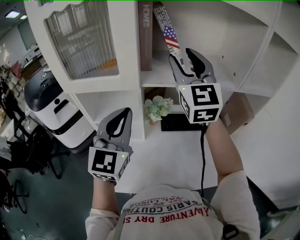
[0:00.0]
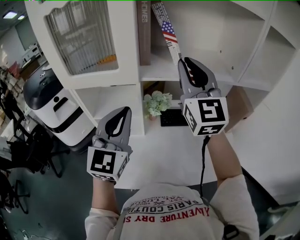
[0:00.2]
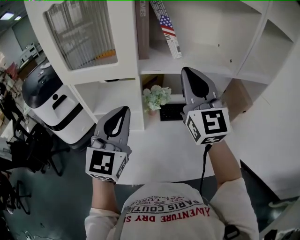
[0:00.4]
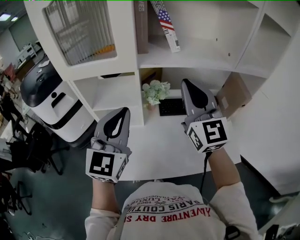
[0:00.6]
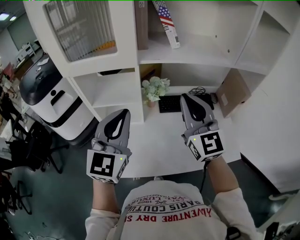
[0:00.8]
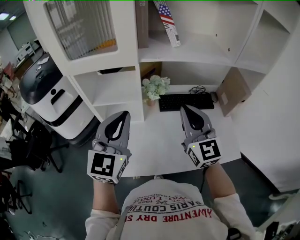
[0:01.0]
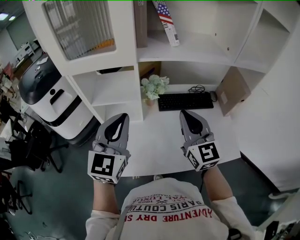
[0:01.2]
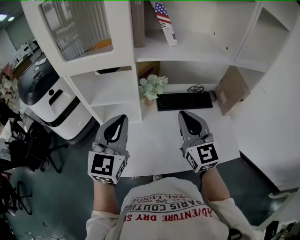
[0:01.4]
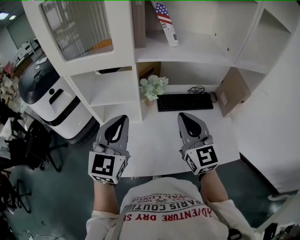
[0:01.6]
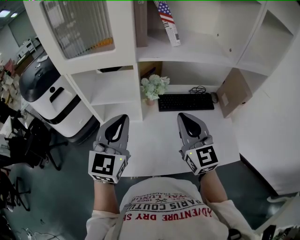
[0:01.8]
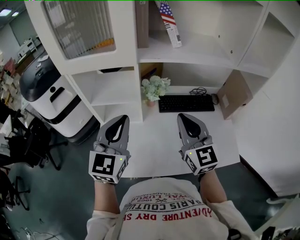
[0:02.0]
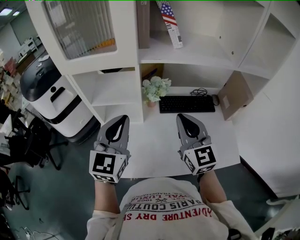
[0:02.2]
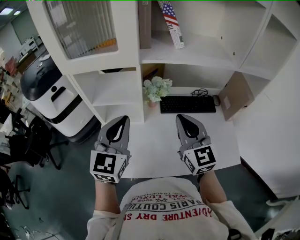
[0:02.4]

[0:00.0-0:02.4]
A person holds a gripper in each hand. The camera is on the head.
0:00.0 to 0:01.2: The right gripper shifts about 25 cm downward and backward, and closes up, while the left gripper travels backward and downward by some 10 cm.
0:01.2 to 0:02.4: The grippers stay close to where they were, moving slightly.

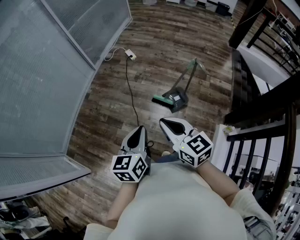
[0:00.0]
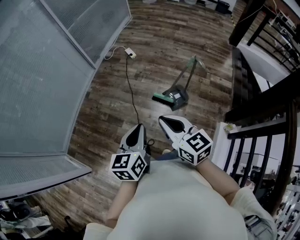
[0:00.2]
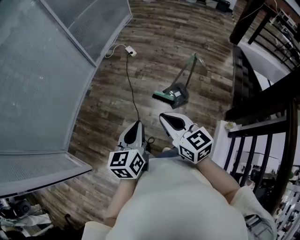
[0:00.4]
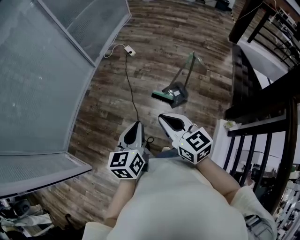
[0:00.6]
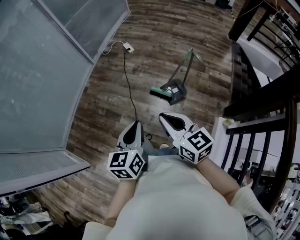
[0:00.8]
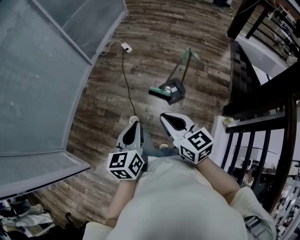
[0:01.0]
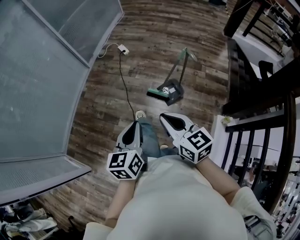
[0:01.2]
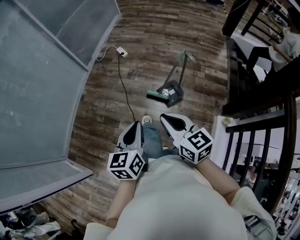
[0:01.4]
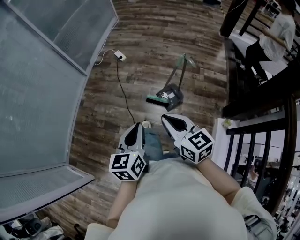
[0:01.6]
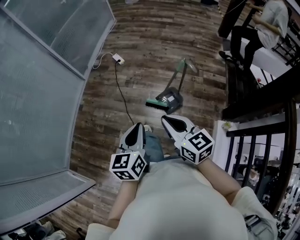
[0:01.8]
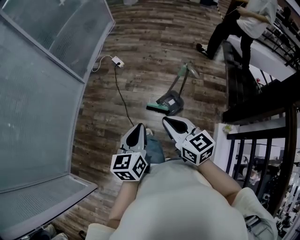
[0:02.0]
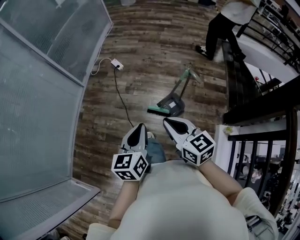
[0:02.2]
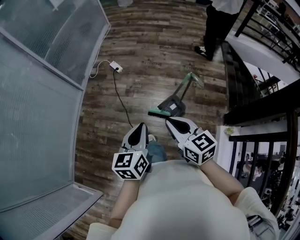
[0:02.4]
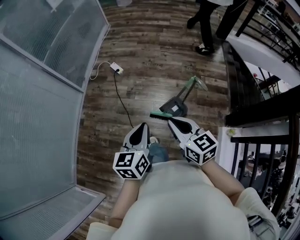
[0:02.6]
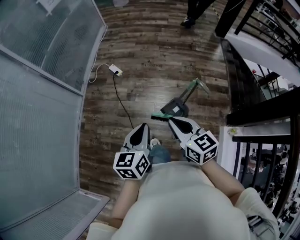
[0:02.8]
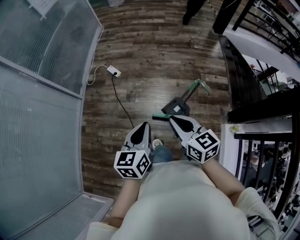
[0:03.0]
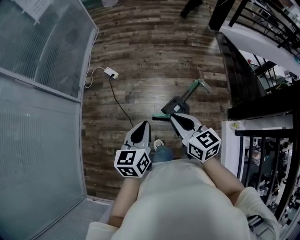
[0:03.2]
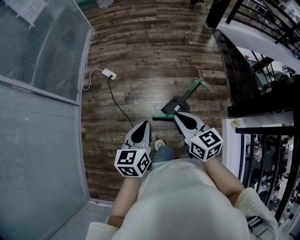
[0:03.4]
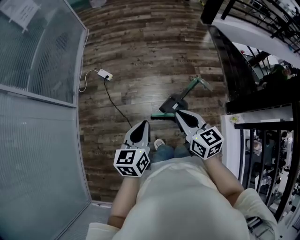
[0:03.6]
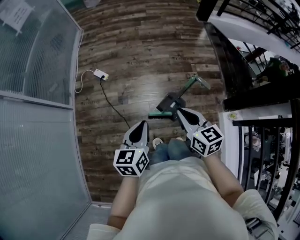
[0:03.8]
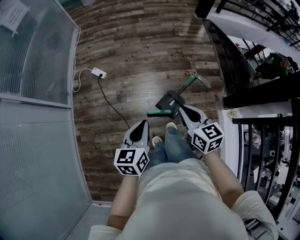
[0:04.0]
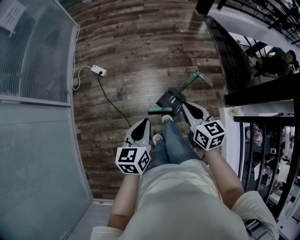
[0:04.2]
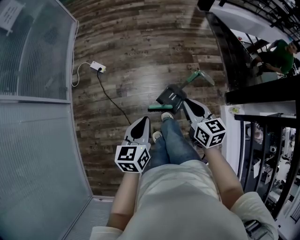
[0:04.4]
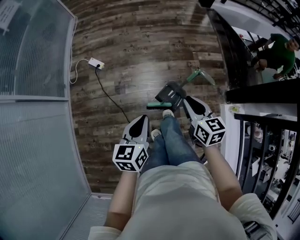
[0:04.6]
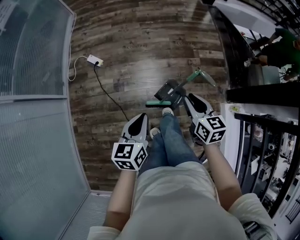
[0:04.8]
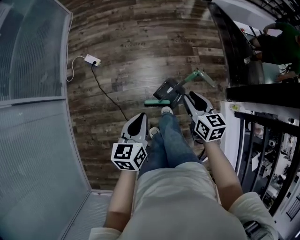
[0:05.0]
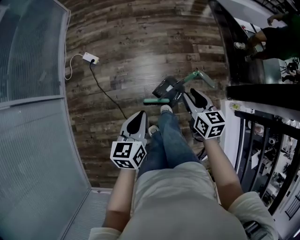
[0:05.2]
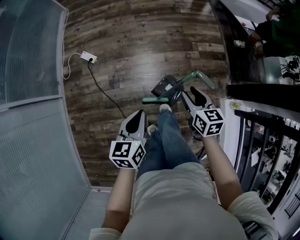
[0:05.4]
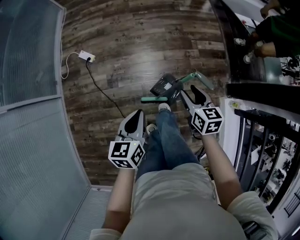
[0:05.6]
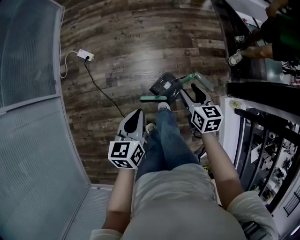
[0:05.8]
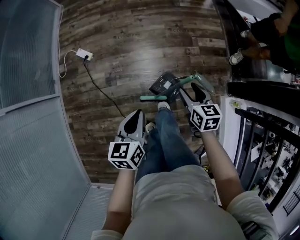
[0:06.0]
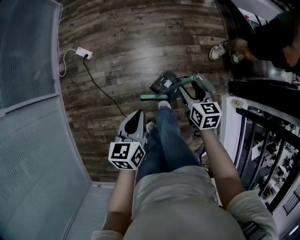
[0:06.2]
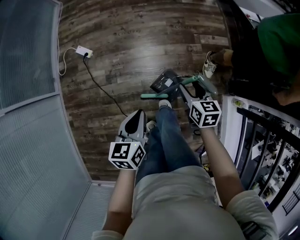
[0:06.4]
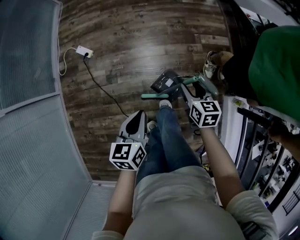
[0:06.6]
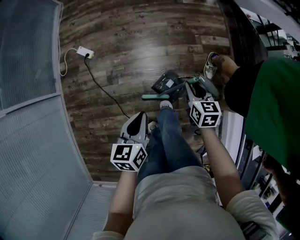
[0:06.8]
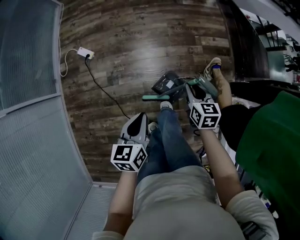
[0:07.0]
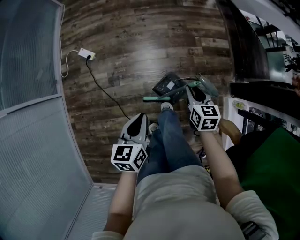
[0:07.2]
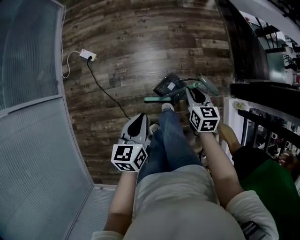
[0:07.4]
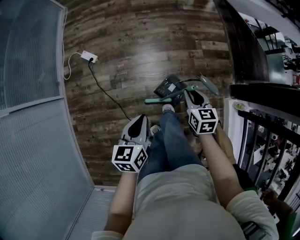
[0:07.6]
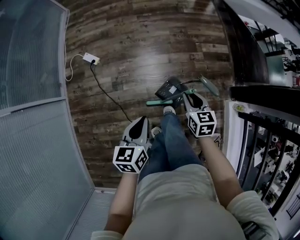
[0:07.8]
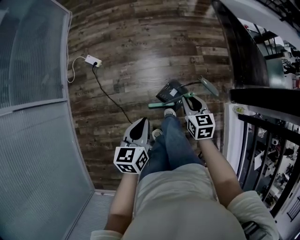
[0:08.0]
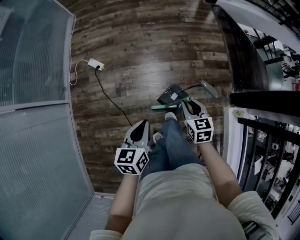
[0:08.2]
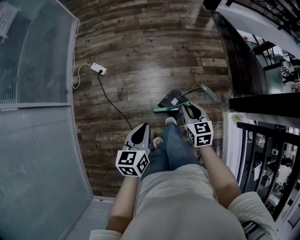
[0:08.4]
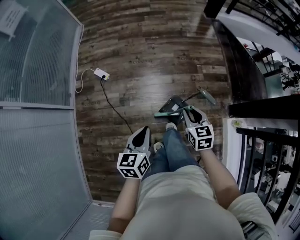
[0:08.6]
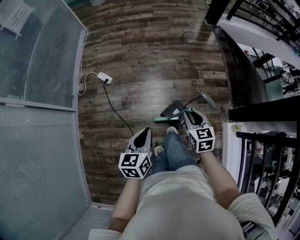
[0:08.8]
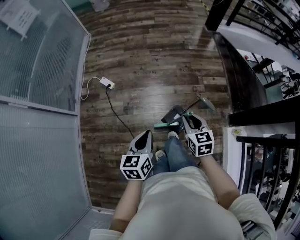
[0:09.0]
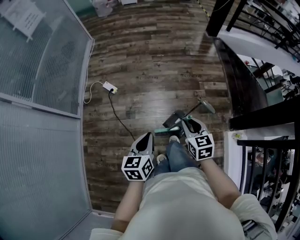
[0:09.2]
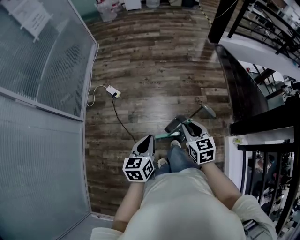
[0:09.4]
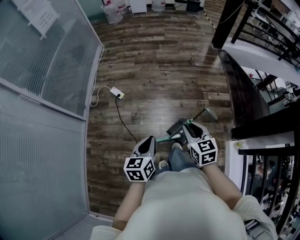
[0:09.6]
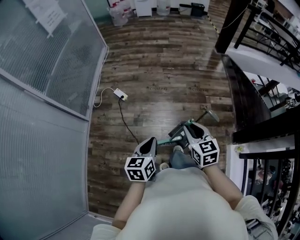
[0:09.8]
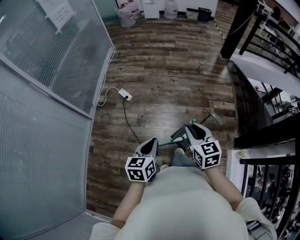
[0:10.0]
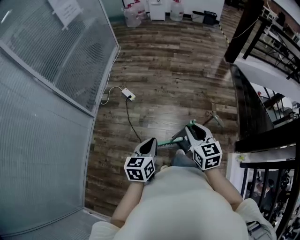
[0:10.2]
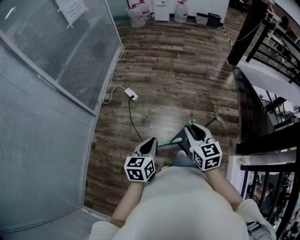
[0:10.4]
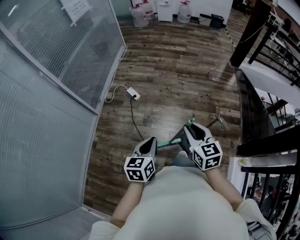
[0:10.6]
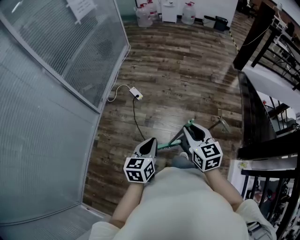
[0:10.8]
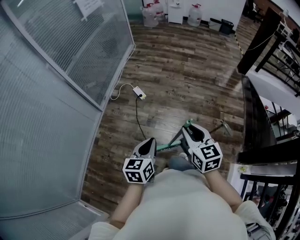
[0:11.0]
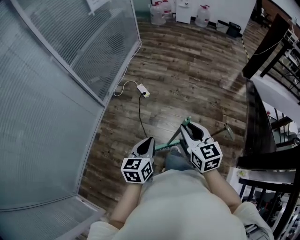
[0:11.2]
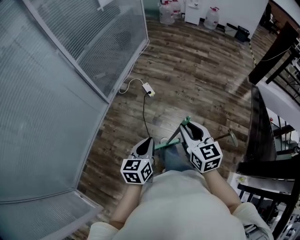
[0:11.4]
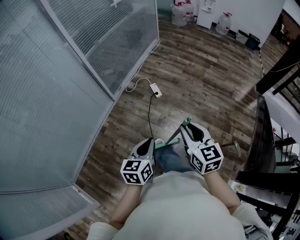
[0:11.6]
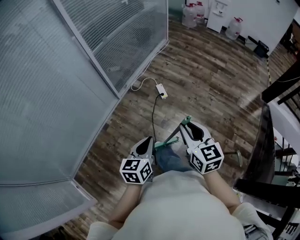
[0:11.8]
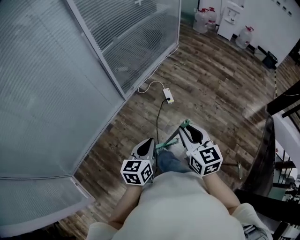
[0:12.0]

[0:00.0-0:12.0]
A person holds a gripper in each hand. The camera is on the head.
0:00.0 to 0:01.6: The right gripper moves to the right, roughly 5 cm. The left gripper heads to the right and forward, covering some 10 cm.
0:01.6 to 0:03.0: The two grippers go about 25 cm forward.
0:03.0 to 0:04.4: The right gripper shifts approximately 15 cm forward, downward and to the right, and swivels about 20 degrees; the left gripper travels forward and downward by about 10 cm.
0:04.4 to 0:06.0: The left gripper shifts some 15 cm forward, downward and to the right. Meanwhile the right gripper heads downward, forward and to the right, covering some 20 cm, and opens.
0:06.0 to 0:07.6: The right gripper closes.
0:07.6 to 0:09.0: The left gripper is displaced upward and backward by about 10 cm; the right gripper travels upward, backward and to the left by approximately 15 cm.
0:09.0 to 0:10.4: The left gripper heads to the left and backward, covering some 10 cm. Meanwhile the right gripper heads upward and to the left, covering approximately 15 cm.
0:10.4 to 0:12.0: The right gripper changes place by some 25 cm, and turns by roughly 30 degrees. The left gripper shifts by roughly 20 cm, and rotates approximately 30 degrees.

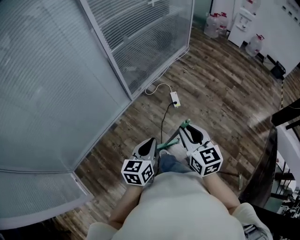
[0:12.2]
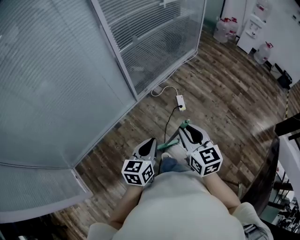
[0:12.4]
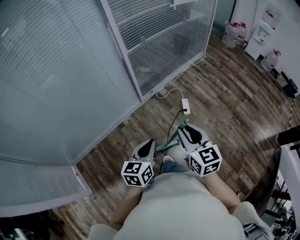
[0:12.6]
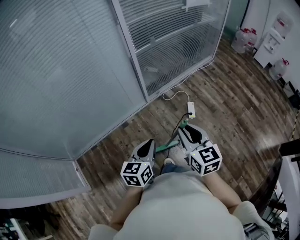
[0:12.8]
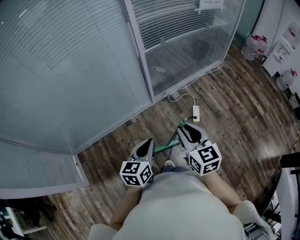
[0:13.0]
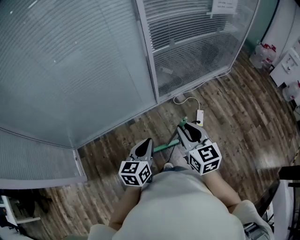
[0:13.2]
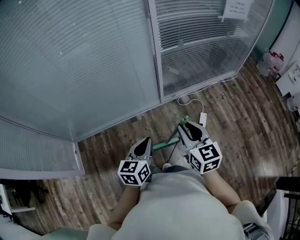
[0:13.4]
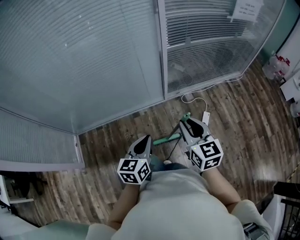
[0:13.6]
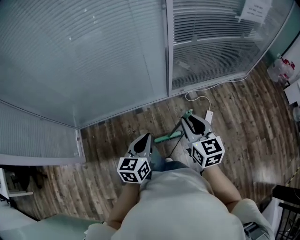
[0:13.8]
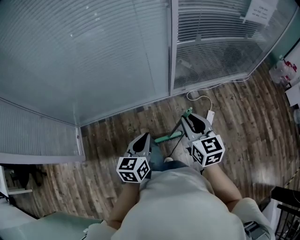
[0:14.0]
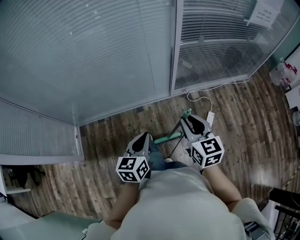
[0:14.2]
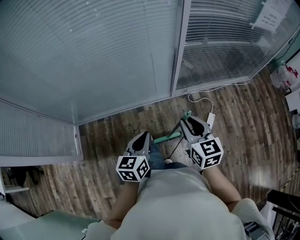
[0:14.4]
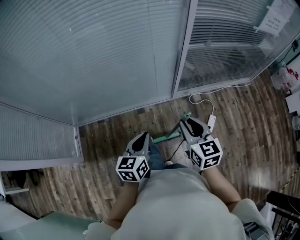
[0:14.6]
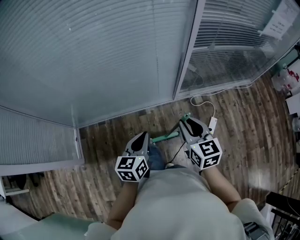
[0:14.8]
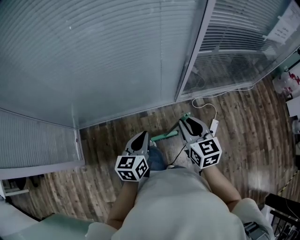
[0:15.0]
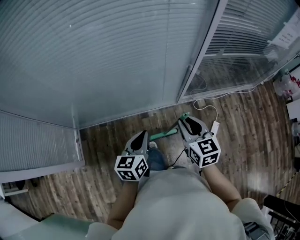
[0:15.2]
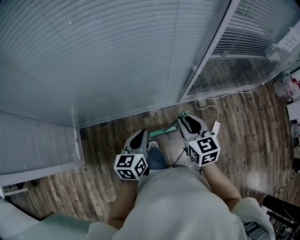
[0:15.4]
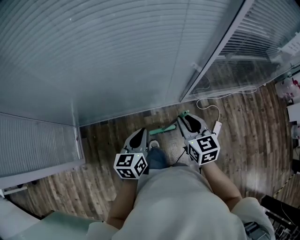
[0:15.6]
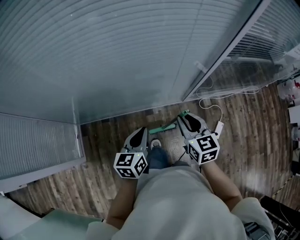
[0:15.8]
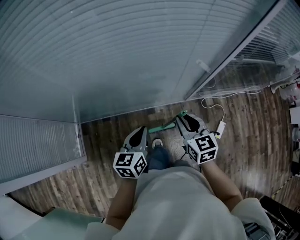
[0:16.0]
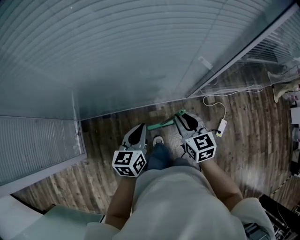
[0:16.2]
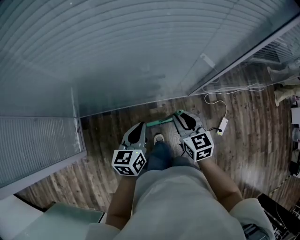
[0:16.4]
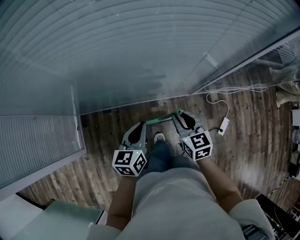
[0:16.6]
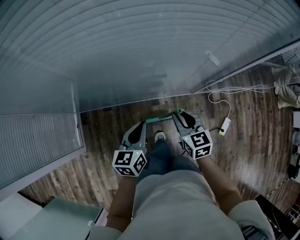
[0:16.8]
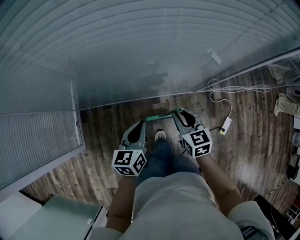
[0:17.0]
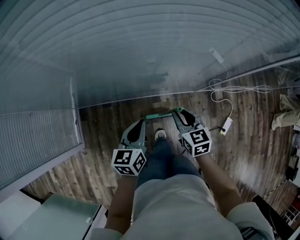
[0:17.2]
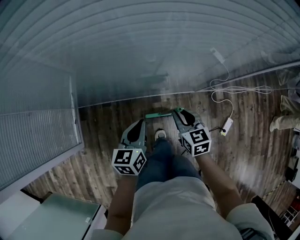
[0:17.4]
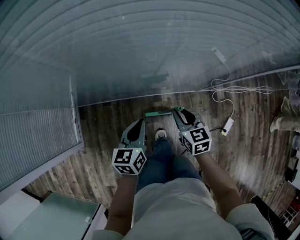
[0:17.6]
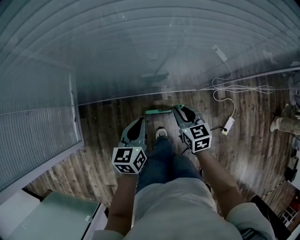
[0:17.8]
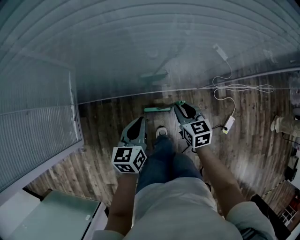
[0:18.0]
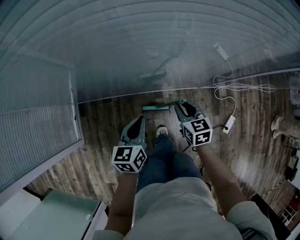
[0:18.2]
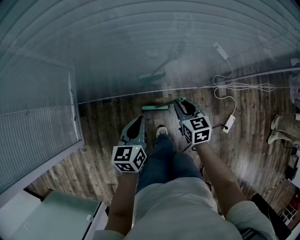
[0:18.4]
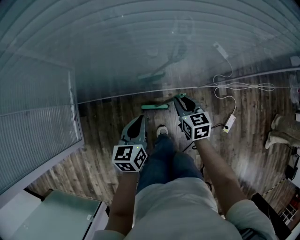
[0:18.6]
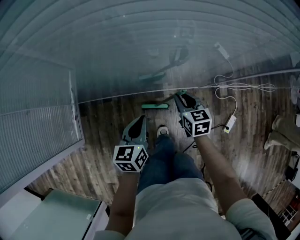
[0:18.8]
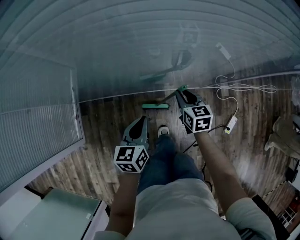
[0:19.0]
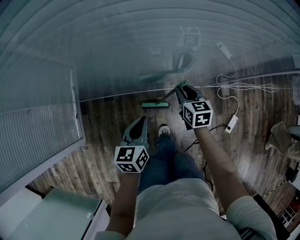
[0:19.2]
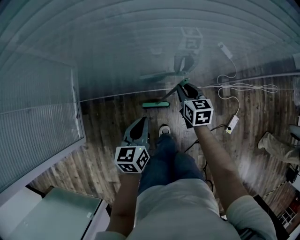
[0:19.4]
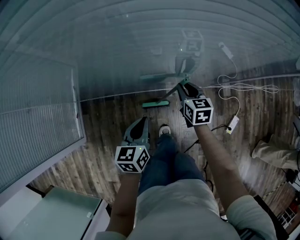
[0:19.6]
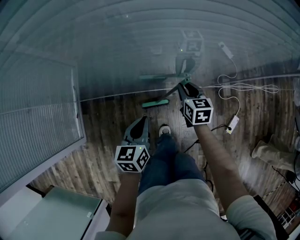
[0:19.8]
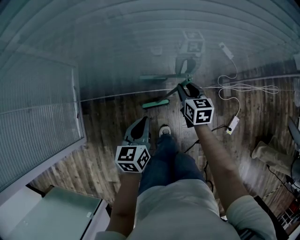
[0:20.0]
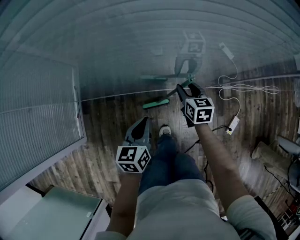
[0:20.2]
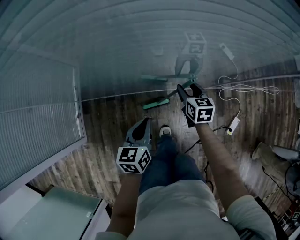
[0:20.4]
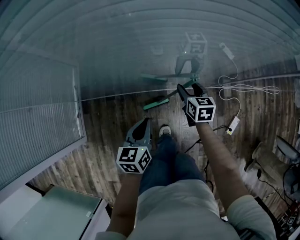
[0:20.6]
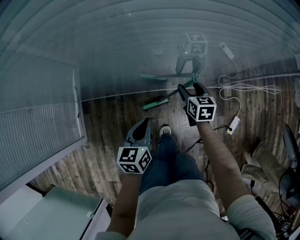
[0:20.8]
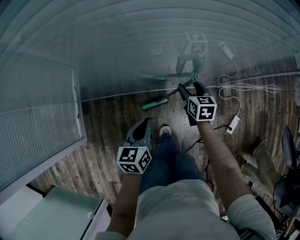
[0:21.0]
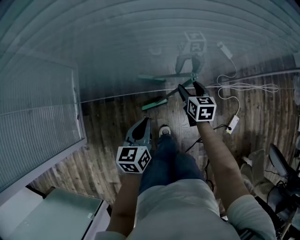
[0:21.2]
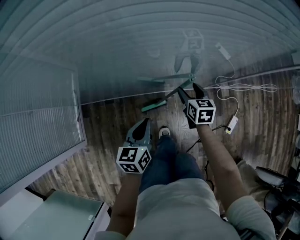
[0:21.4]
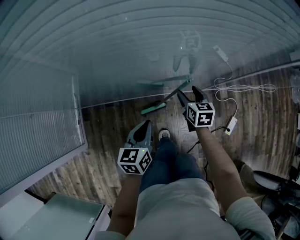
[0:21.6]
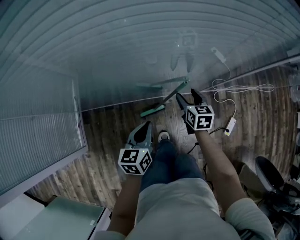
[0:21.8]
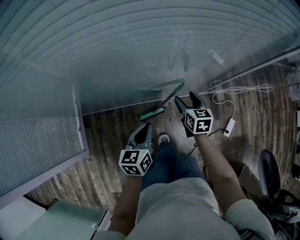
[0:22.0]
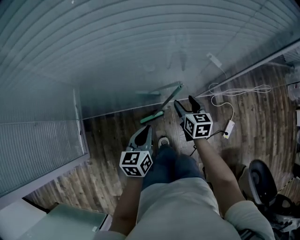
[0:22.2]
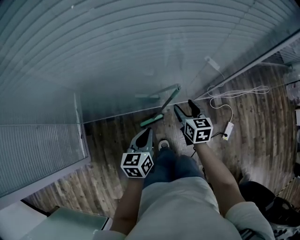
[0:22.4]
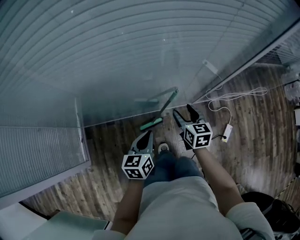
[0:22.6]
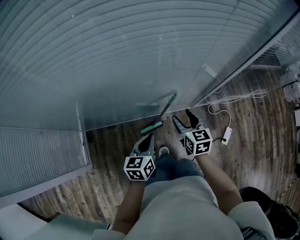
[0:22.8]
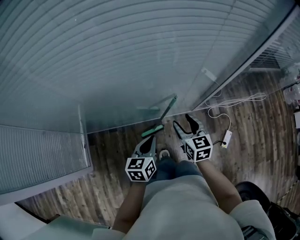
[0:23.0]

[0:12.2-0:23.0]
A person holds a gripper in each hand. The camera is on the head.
0:12.2 to 0:13.8: The left gripper moves some 15 cm, and changes its angle by about 40 degrees. Meanwhile the right gripper ends up approximately 25 cm from where it was, and swivels approximately 30 degrees.
0:13.8 to 0:15.2: The two grippers go roughly 20 cm forward and to the left.
0:15.2 to 0:16.8: The right gripper shifts approximately 25 cm forward, downward and to the left. The left gripper shifts some 20 cm forward, to the left and downward.
0:16.8 to 0:18.4: The left gripper travels downward by about 5 cm. The right gripper heads downward and forward, covering some 10 cm.
0:18.4 to 0:20.0: The right gripper heads forward, covering about 10 cm.
0:20.0 to 0:21.4: The right gripper opens its fingers.
0:21.4 to 0:23.0: The left gripper goes some 10 cm upward and to the right. Meanwhile the right gripper is displaced upward and backward by approximately 20 cm.
